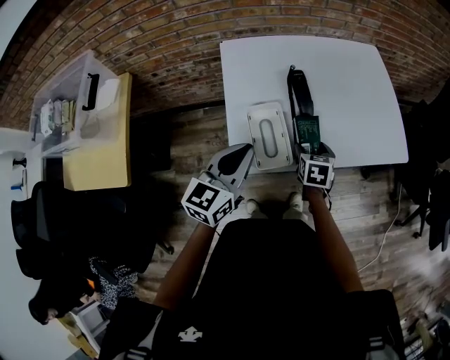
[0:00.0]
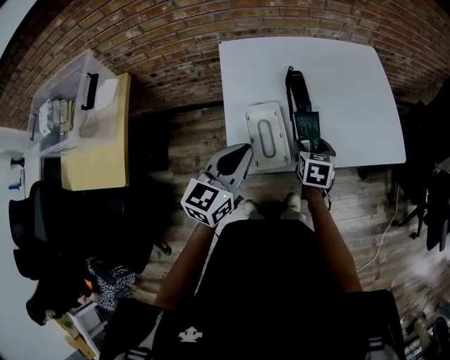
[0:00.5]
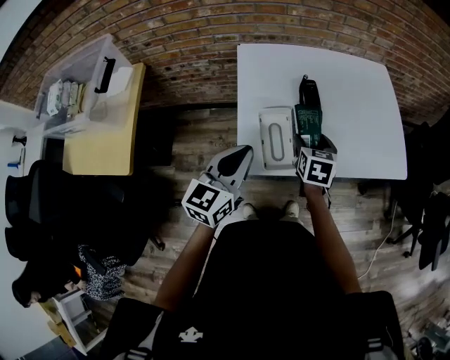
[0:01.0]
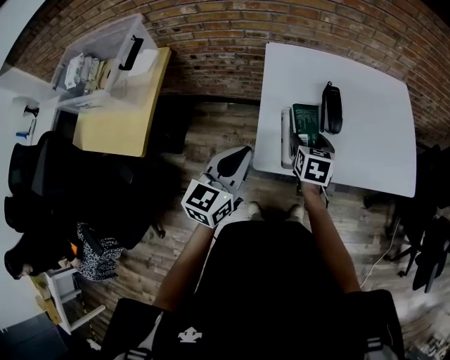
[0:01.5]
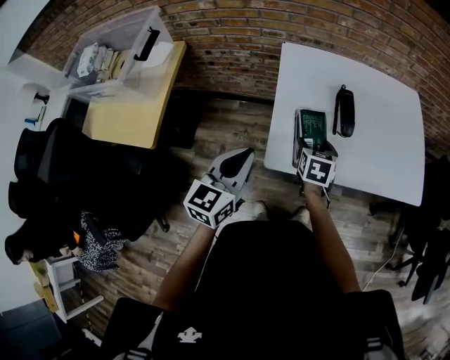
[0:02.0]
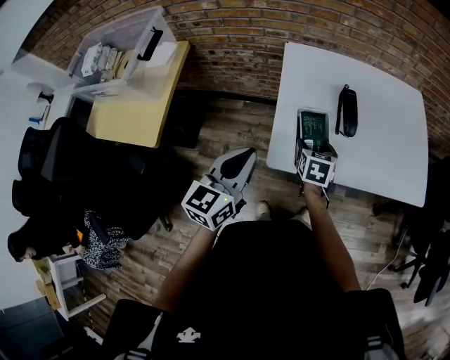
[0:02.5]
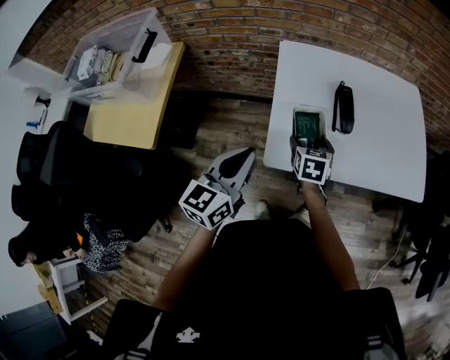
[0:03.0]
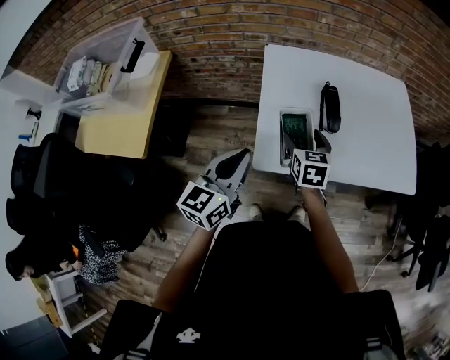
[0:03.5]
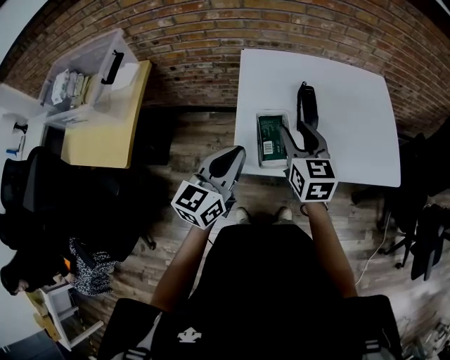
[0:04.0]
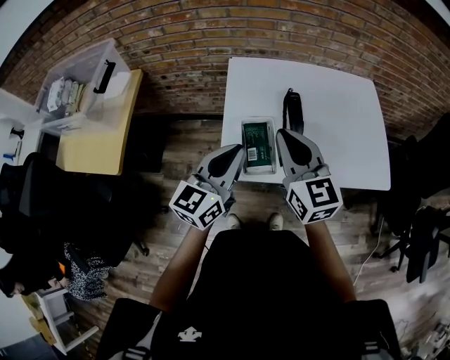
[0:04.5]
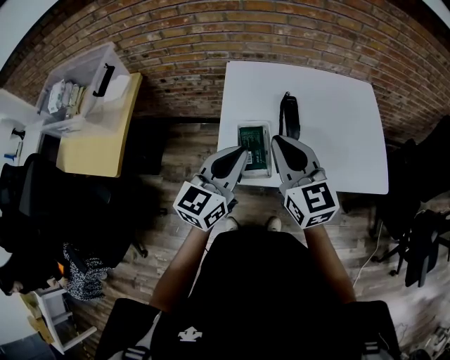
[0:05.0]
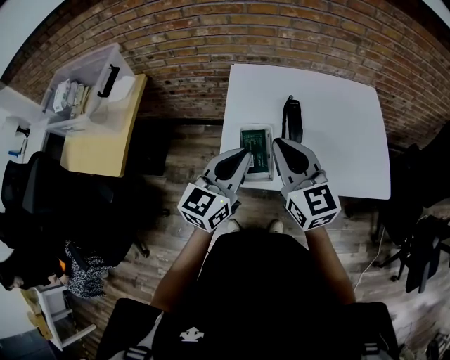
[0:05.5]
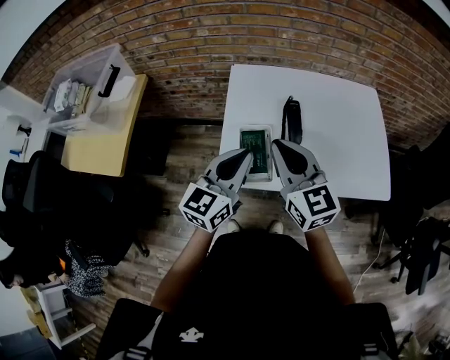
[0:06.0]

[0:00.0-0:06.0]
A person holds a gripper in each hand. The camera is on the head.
0:00.0 to 0:02.0: The right gripper shifts approximately 15 cm to the left. The left gripper goes some 10 cm to the left and backward.
0:02.0 to 0:04.0: The left gripper goes approximately 5 cm to the right. The right gripper heads upward, covering approximately 15 cm, and swivels some 30 degrees.
0:04.0 to 0:06.0: The left gripper is displaced to the right by some 10 cm. The right gripper heads upward, covering about 5 cm, rotates roughly 20 degrees, and closes.

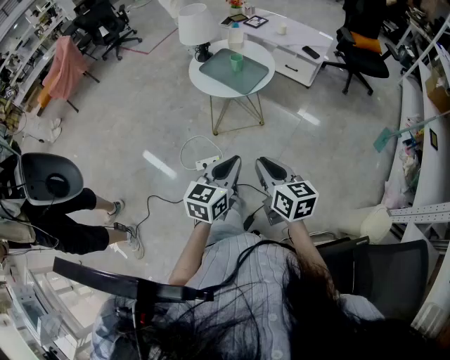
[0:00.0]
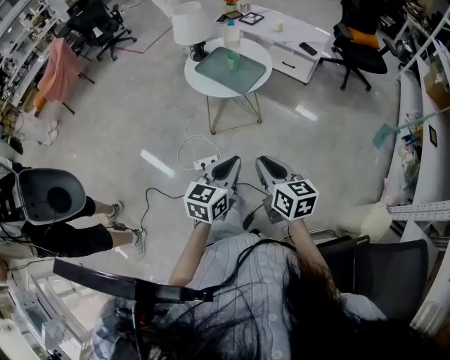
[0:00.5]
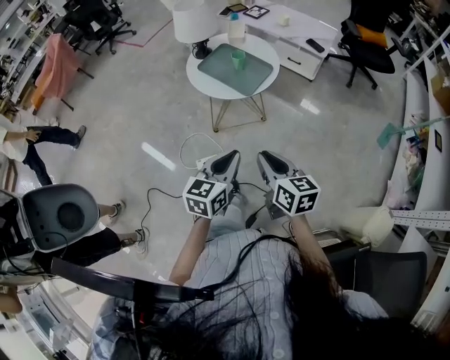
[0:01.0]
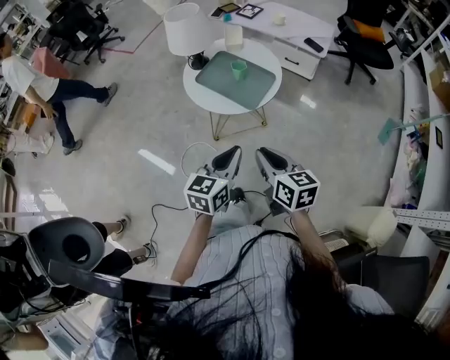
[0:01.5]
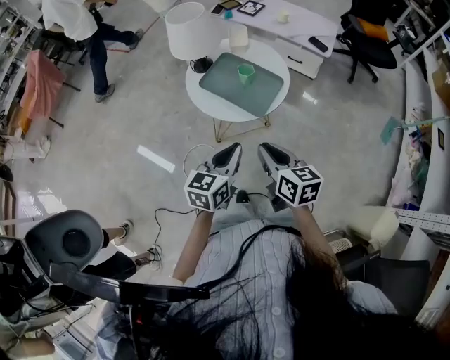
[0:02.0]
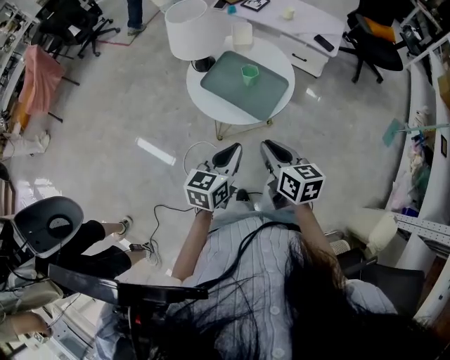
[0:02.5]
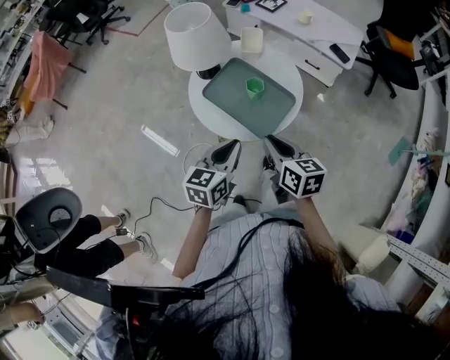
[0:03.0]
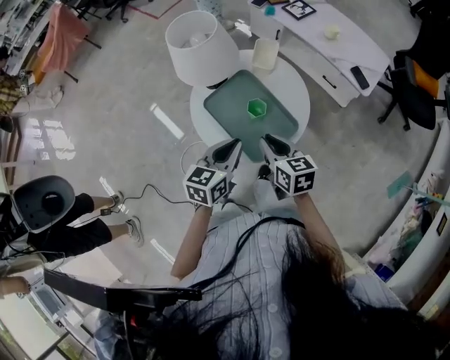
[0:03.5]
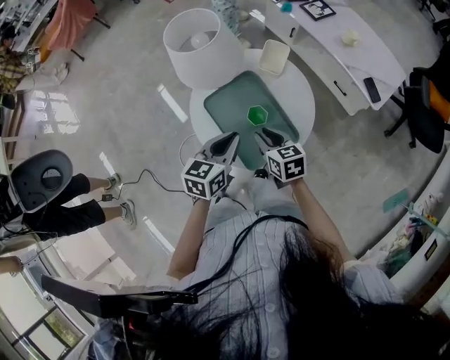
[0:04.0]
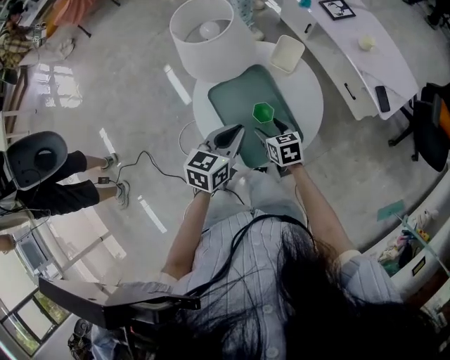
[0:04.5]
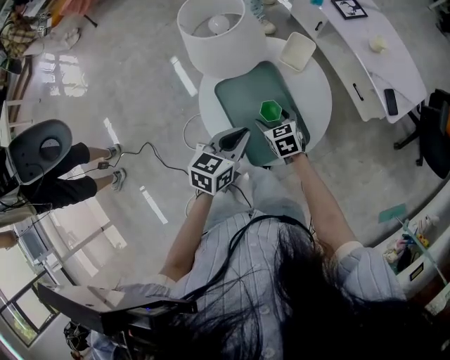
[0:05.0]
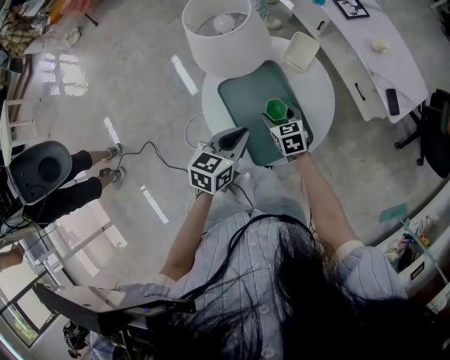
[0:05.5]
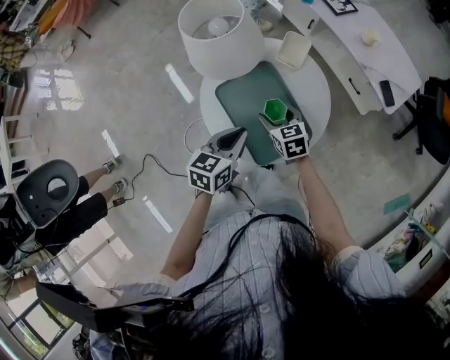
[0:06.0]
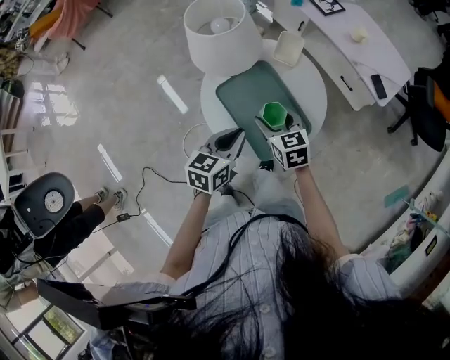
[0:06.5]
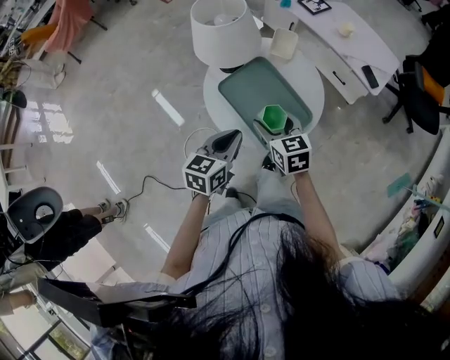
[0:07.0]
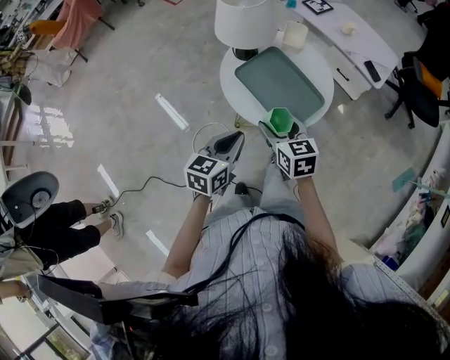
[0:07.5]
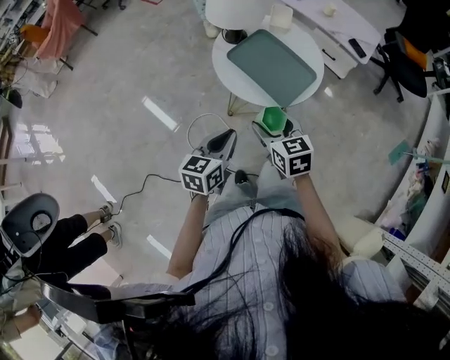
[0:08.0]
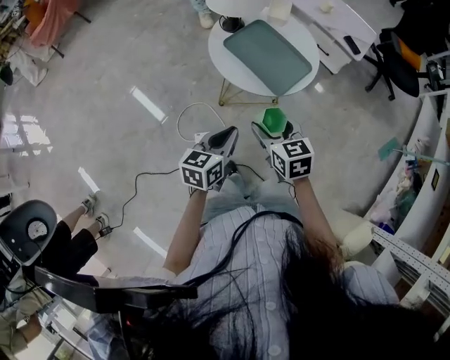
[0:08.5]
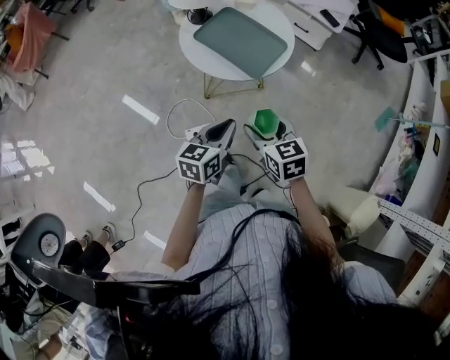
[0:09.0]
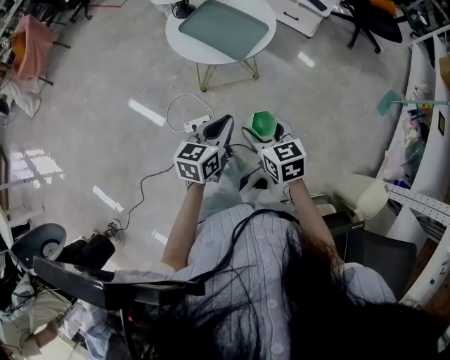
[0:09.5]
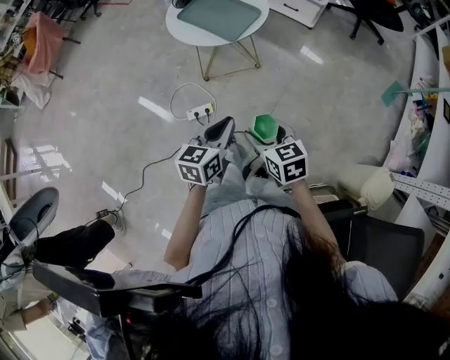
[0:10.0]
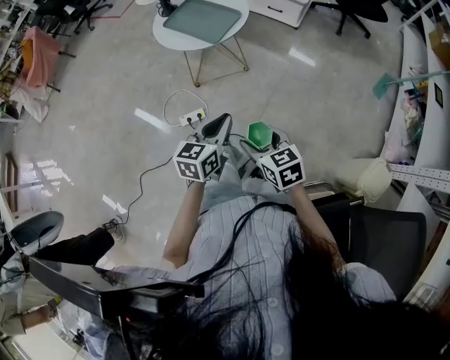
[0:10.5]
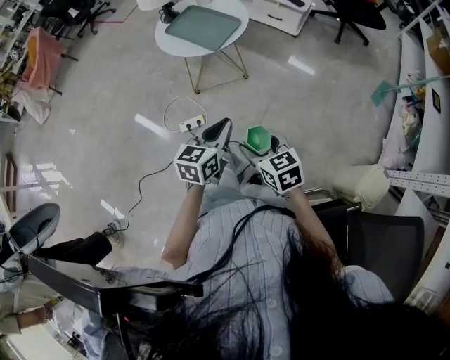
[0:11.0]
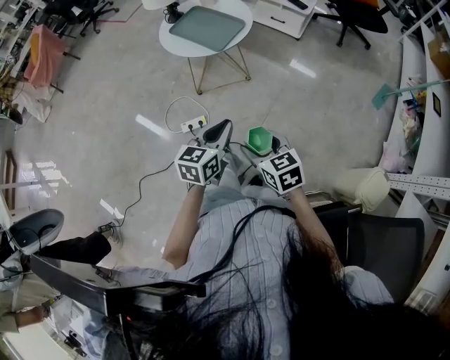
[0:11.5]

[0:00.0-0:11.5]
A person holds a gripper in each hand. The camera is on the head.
0:00.0 to 0:02.0: Both grippers move forward, some 25 cm.
0:02.0 to 0:04.0: The right gripper ends up about 35 cm from where it was, and turns by approximately 40 degrees, while the left gripper shifts by roughly 25 cm, and rotates roughly 20 degrees.
0:04.0 to 0:06.0: The right gripper heads forward, covering some 5 cm, and opens.
0:06.0 to 0:07.5: The left gripper moves backward and to the left, about 15 cm. The right gripper travels backward, upward and to the left by about 20 cm.
0:07.5 to 0:09.5: The left gripper goes approximately 25 cm backward and to the right; the right gripper heads backward, covering roughly 30 cm.
0:09.5 to 0:11.5: The two grippers go approximately 15 cm backward and to the right.

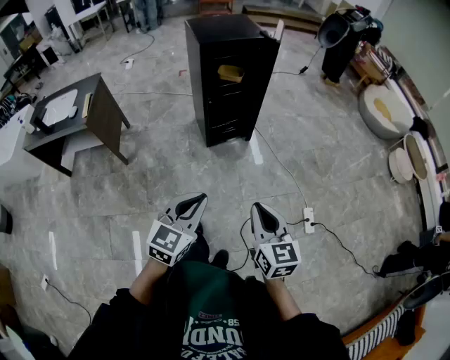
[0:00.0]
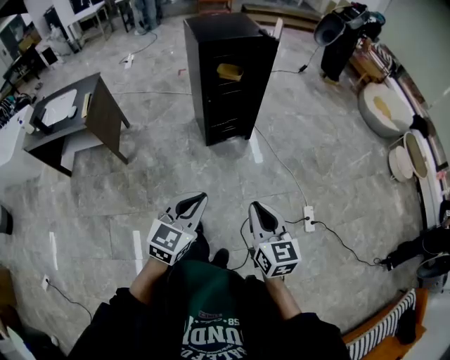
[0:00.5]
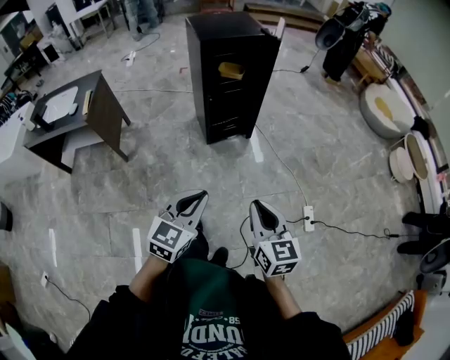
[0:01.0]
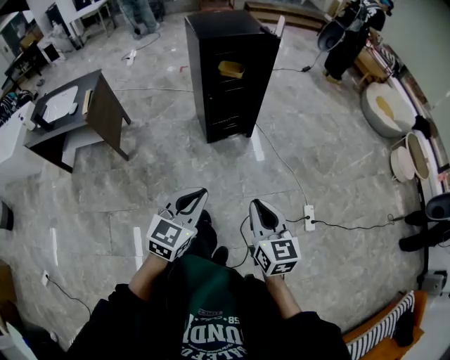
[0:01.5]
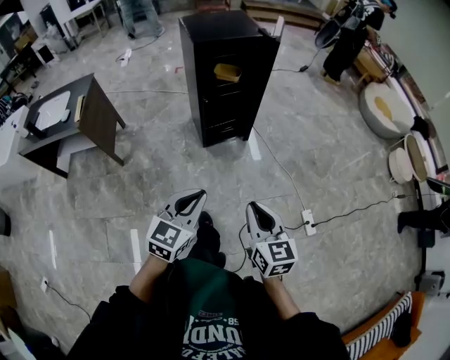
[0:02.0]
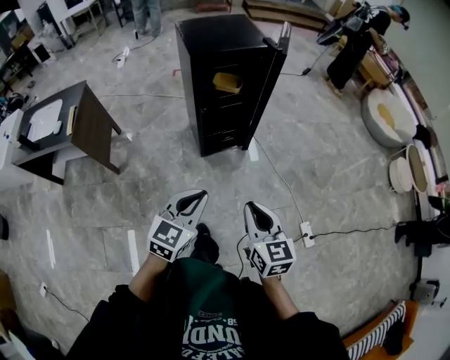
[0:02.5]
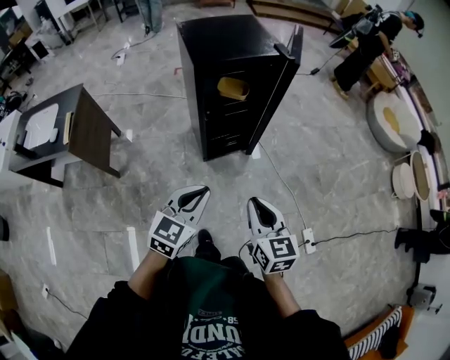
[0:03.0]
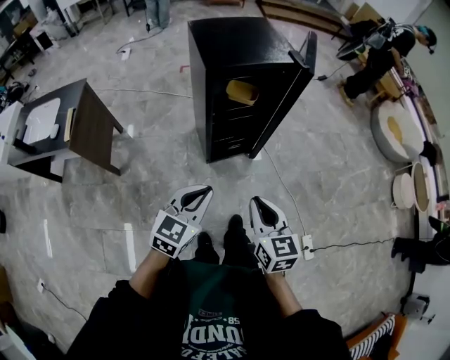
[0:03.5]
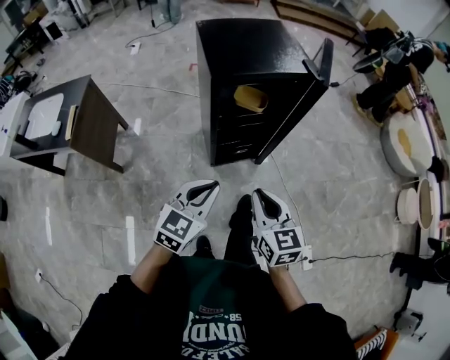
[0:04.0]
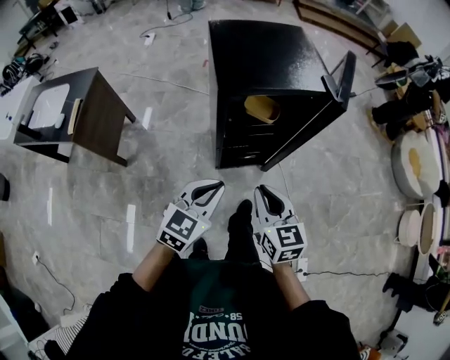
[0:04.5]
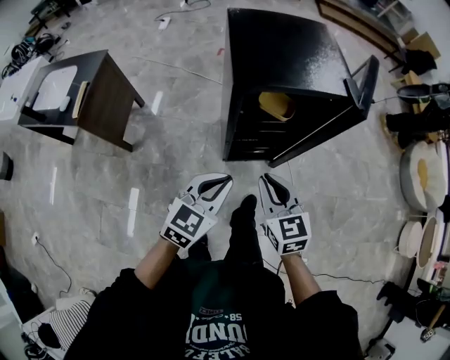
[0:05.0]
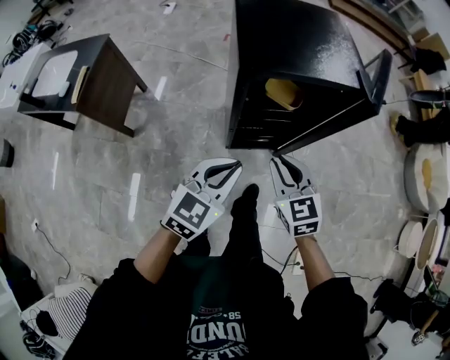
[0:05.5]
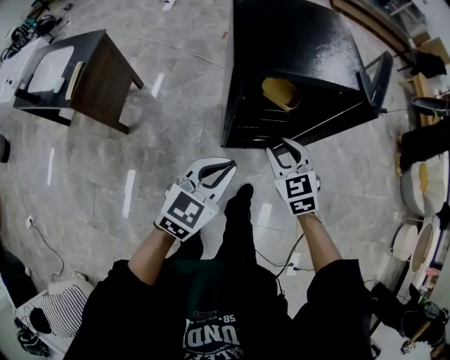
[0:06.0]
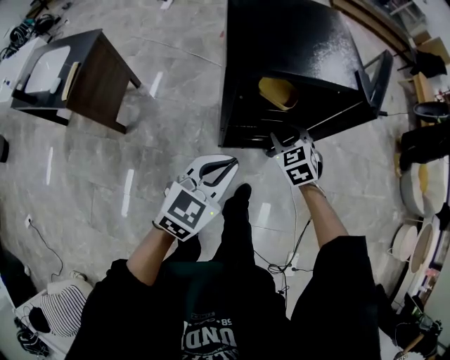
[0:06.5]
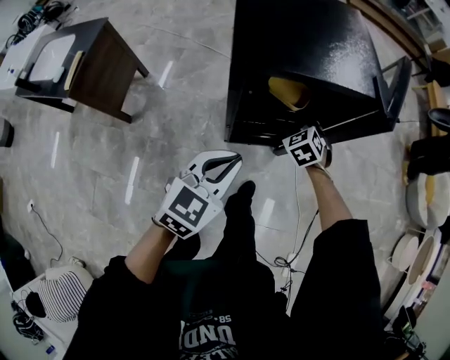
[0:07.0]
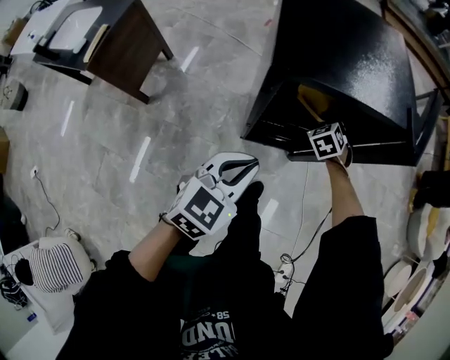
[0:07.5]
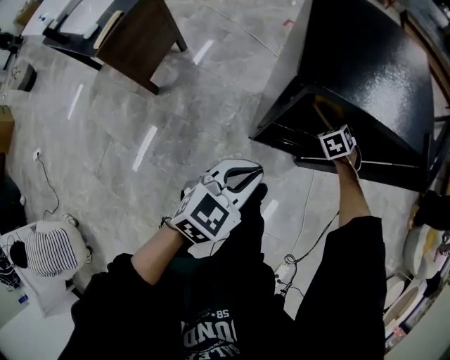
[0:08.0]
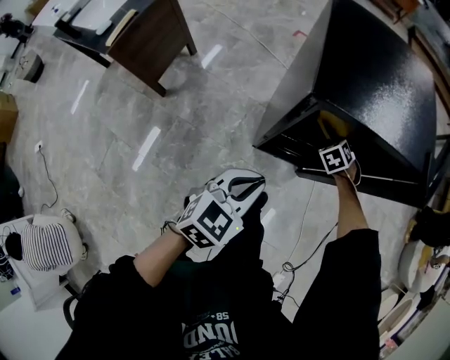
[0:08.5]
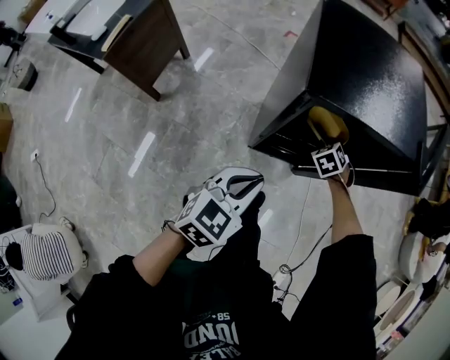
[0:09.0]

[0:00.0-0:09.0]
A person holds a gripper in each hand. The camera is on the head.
0:00.0 to 0:02.0: Both grippers travel together forward, some 5 cm.
0:02.0 to 0:04.5: The two grippers go roughly 40 cm forward.
0:04.5 to 0:07.0: The left gripper moves forward, some 10 cm, while the right gripper moves forward and downward, roughly 35 cm, and turns by approximately 50 degrees.
0:07.0 to 0:09.0: The left gripper moves about 5 cm. The right gripper shifts approximately 5 cm downward.
